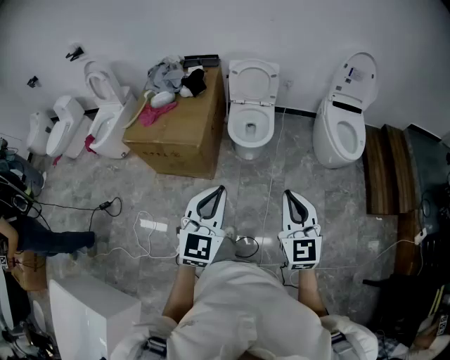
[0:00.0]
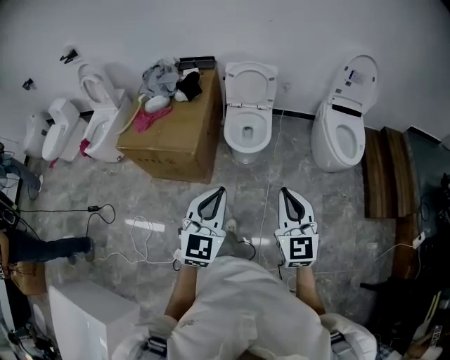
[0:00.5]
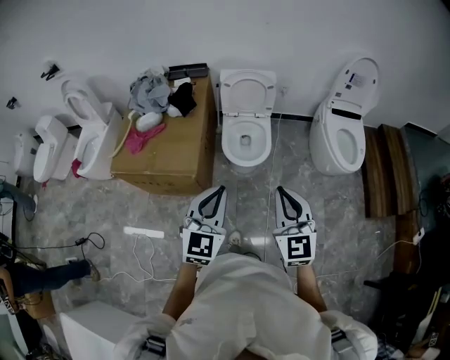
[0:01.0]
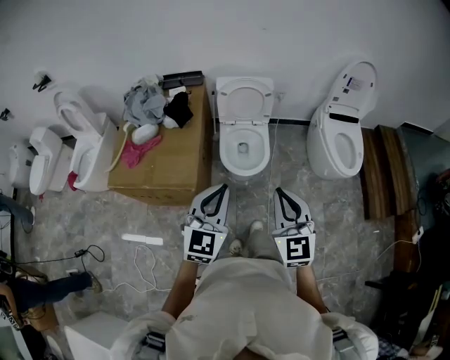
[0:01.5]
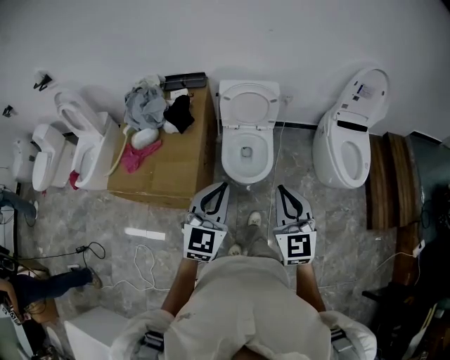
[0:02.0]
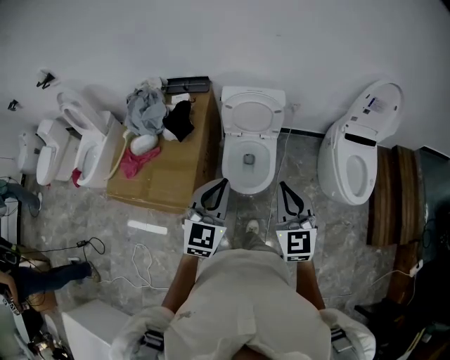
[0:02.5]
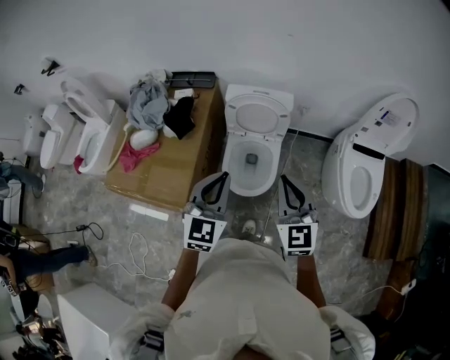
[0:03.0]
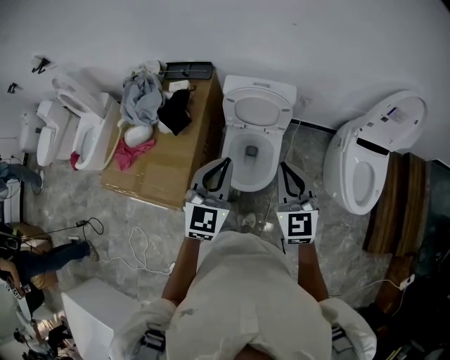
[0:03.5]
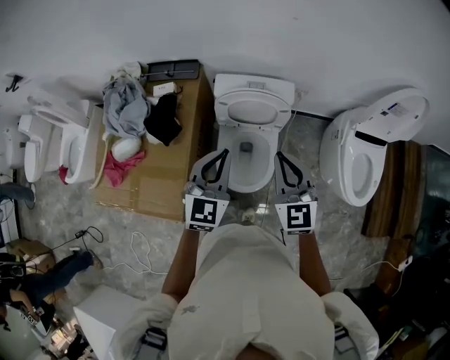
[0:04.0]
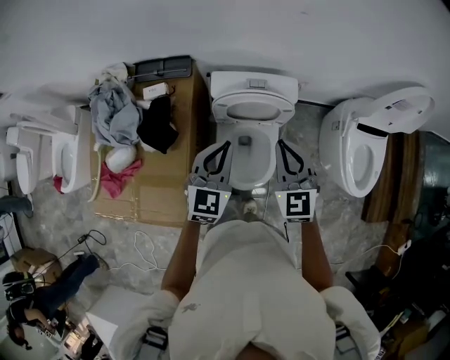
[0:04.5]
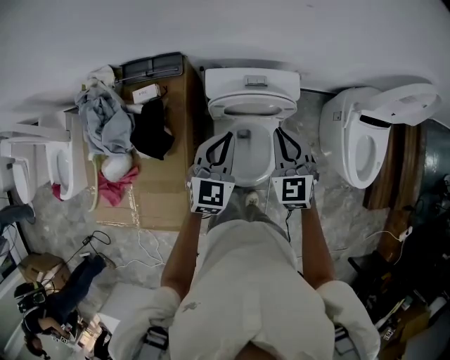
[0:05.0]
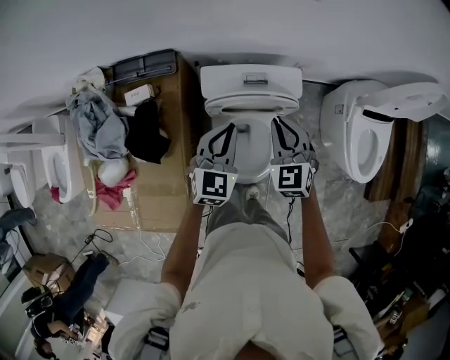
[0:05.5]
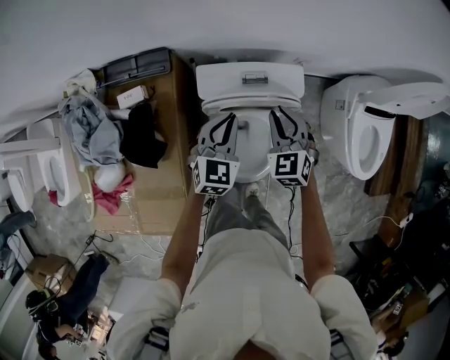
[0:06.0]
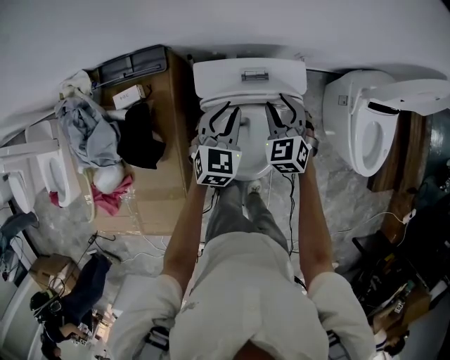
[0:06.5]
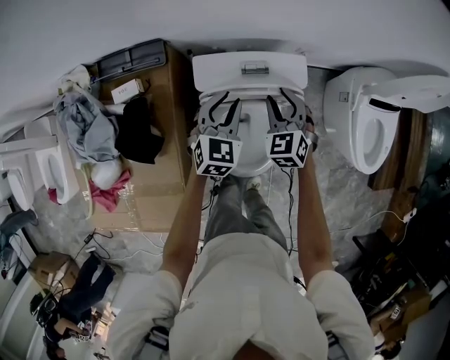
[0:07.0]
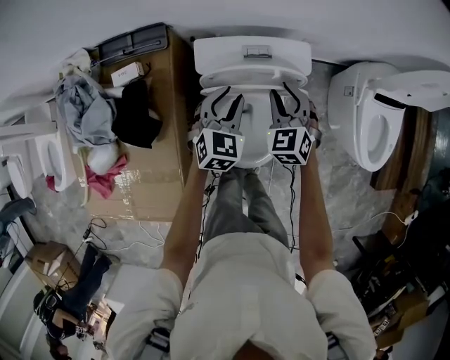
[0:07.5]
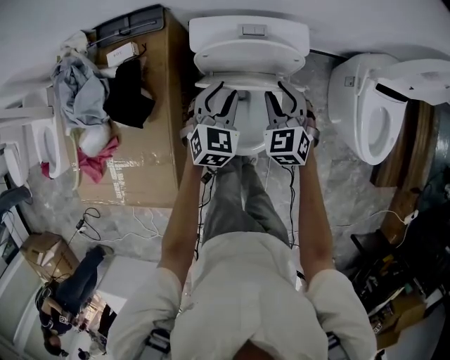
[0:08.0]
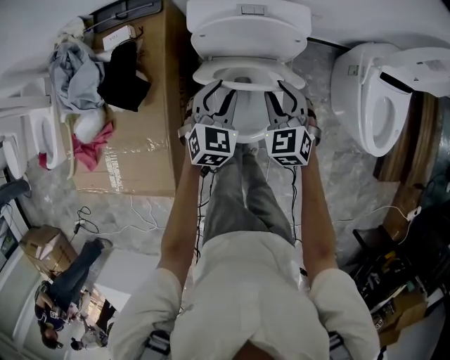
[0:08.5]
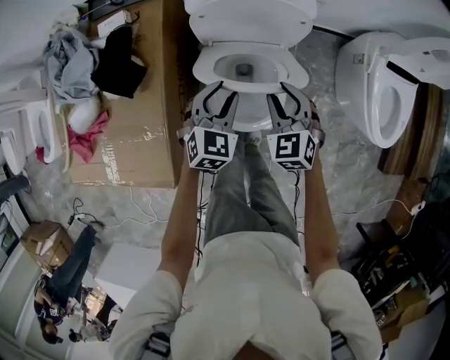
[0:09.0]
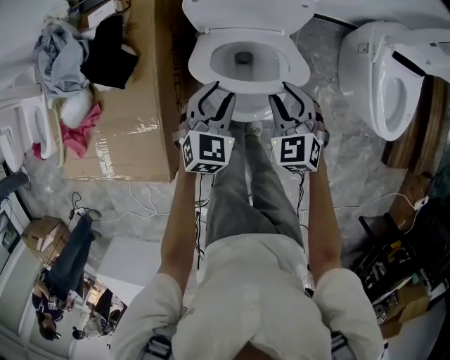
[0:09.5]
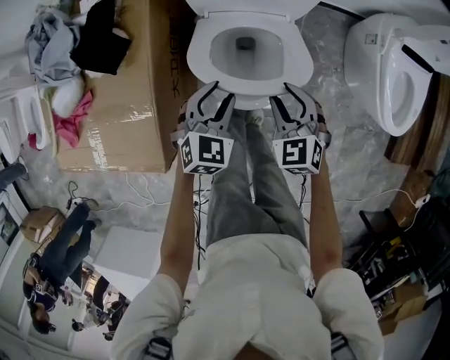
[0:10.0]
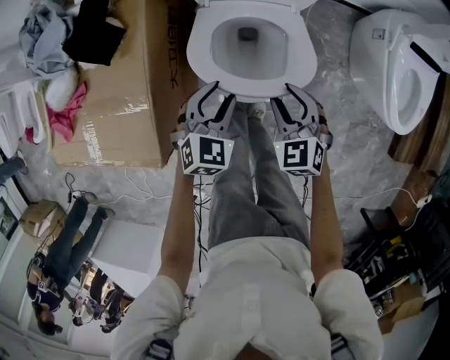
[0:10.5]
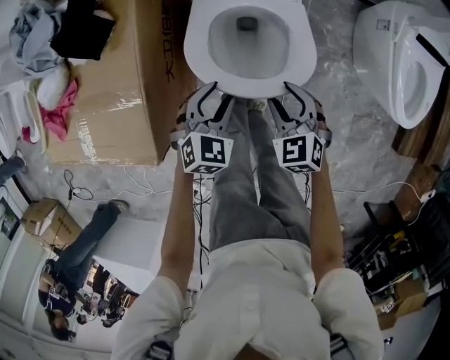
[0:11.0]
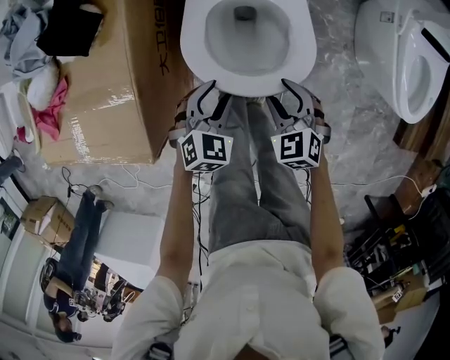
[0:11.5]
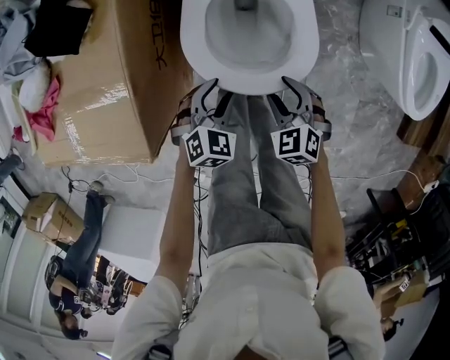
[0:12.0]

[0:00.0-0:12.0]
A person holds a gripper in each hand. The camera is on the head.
0:00.0 to 0:02.0: The grippers both shift forward by approximately 35 cm.
0:02.0 to 0:04.0: Both grippers move forward, roughly 35 cm.
0:04.0 to 0:06.0: The right gripper shifts some 30 cm downward and forward, and turns by about 30 degrees; the left gripper goes some 30 cm forward and downward.
0:06.0 to 0:08.0: The right gripper goes some 5 cm backward, while the left gripper shifts roughly 10 cm backward and downward, and opens.
0:08.0 to 0:10.0: The two grippers go approximately 20 cm backward and downward.
0:10.0 to 0:12.0: Both grippers travel together downward and backward, roughly 20 cm.

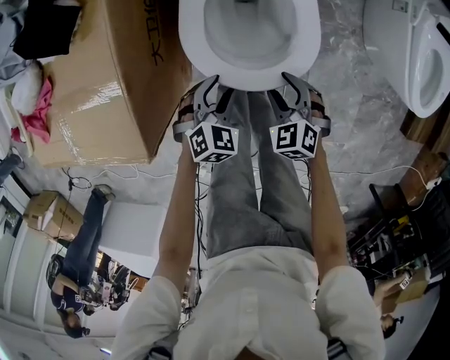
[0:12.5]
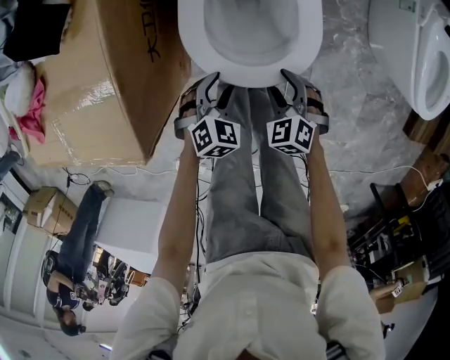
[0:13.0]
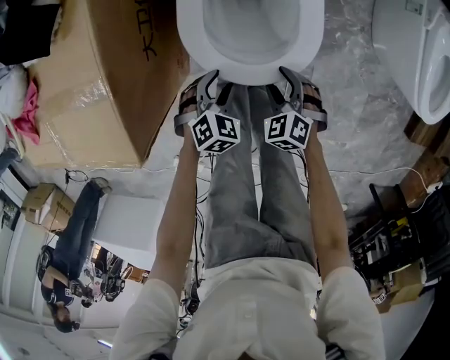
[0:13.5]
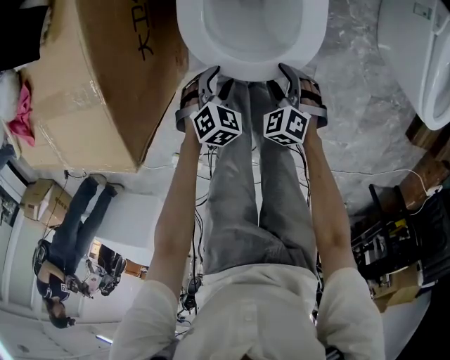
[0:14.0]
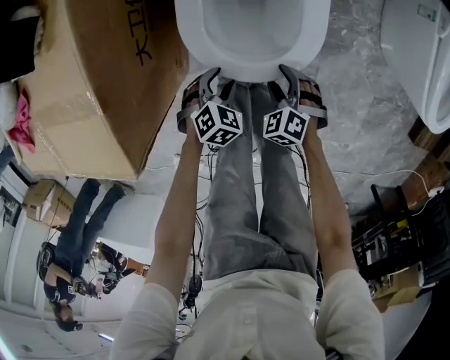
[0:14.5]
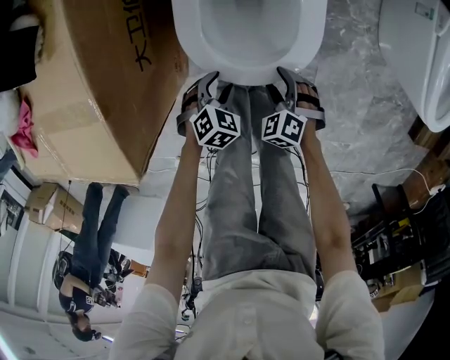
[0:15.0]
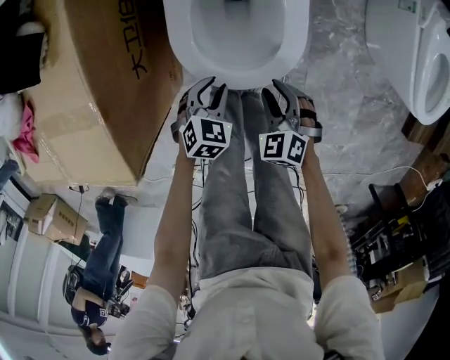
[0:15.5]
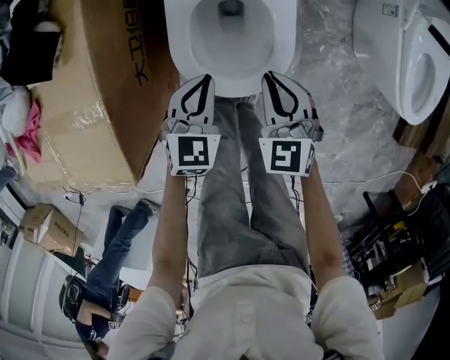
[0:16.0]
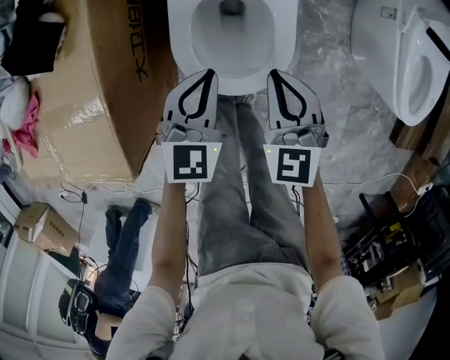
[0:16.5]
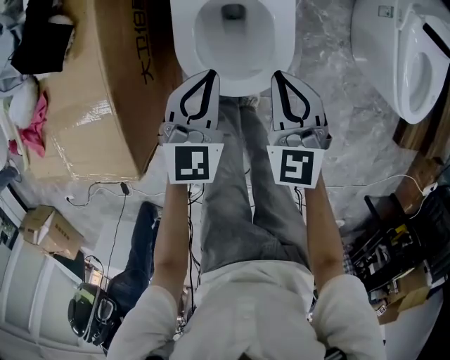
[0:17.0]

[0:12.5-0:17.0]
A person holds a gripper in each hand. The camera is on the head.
0:12.5 to 0:14.5: The left gripper goes roughly 10 cm downward, while the right gripper is displaced downward and to the right by approximately 10 cm.
0:14.5 to 0:17.0: The left gripper shifts some 30 cm upward and forward, tilts its fingers some 40 degrees upward, and closes its fingers. The right gripper heads upward, covering approximately 30 cm, angles its fingers upward, by approximately 30 degrees, and closes up.

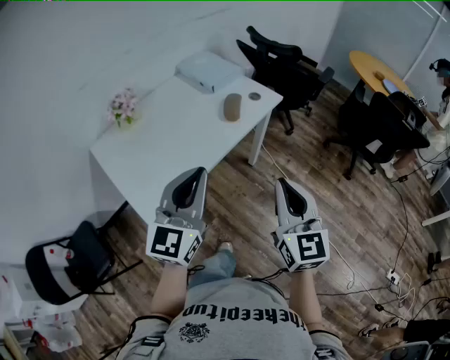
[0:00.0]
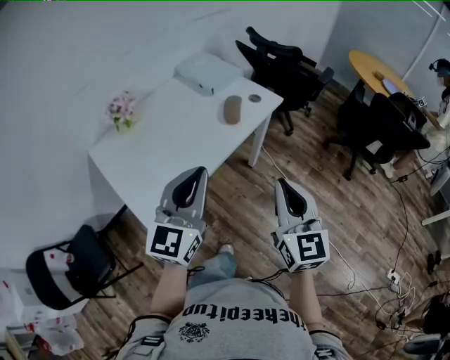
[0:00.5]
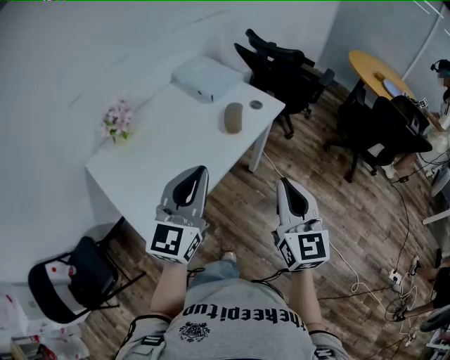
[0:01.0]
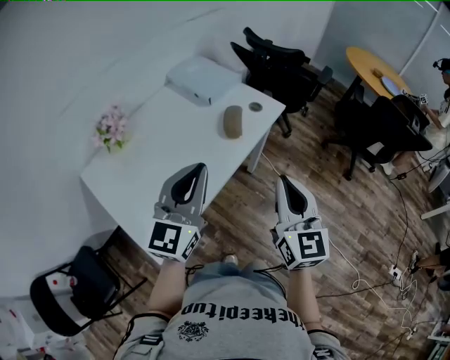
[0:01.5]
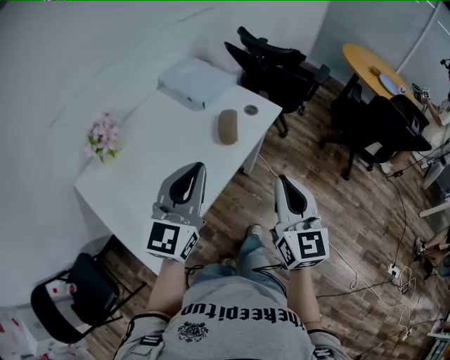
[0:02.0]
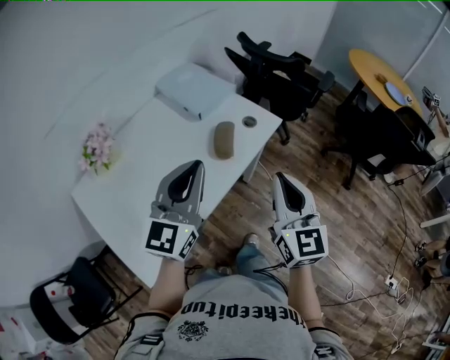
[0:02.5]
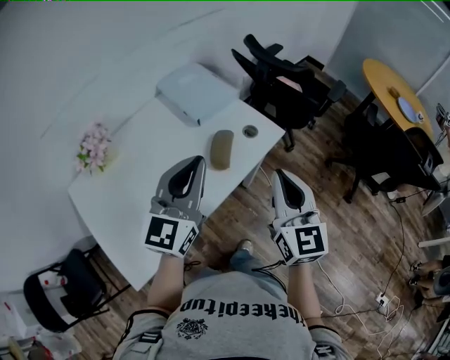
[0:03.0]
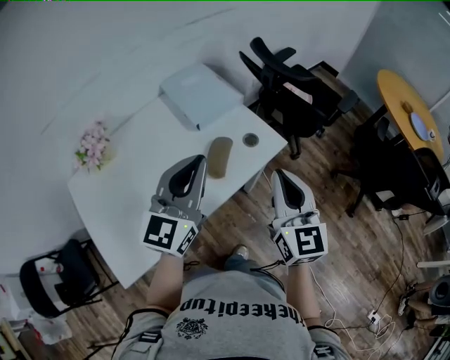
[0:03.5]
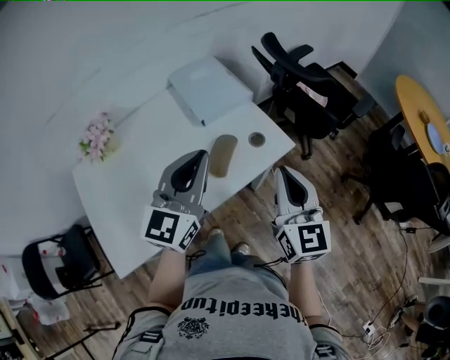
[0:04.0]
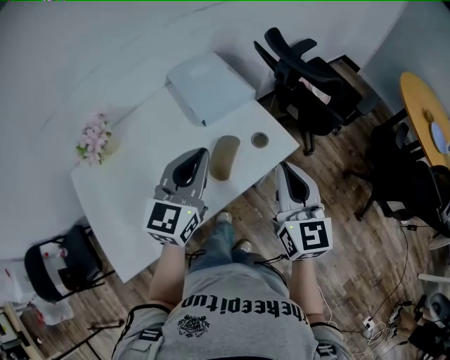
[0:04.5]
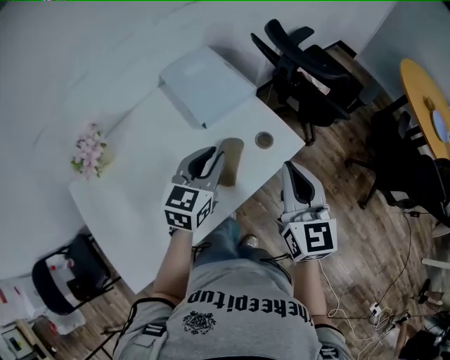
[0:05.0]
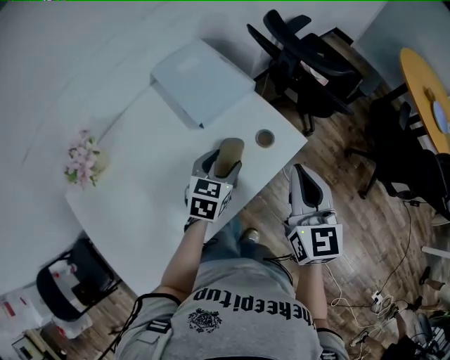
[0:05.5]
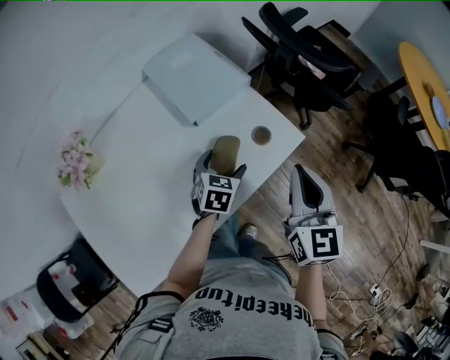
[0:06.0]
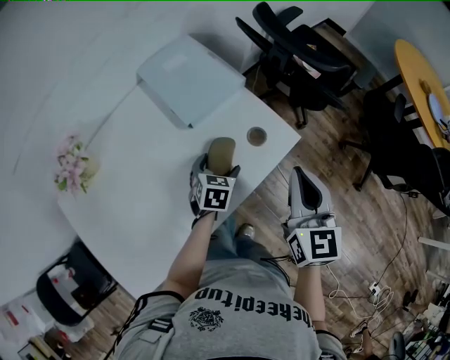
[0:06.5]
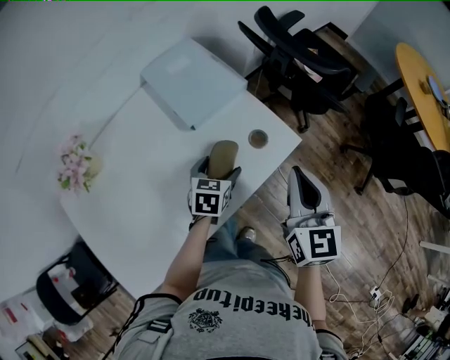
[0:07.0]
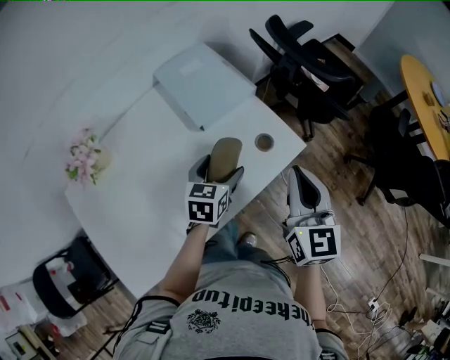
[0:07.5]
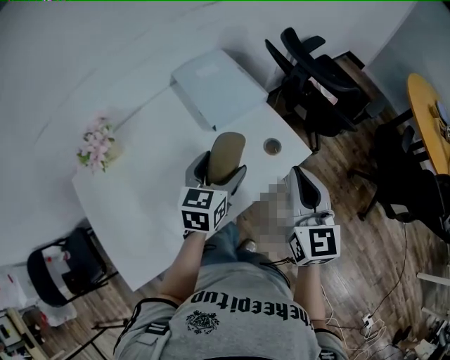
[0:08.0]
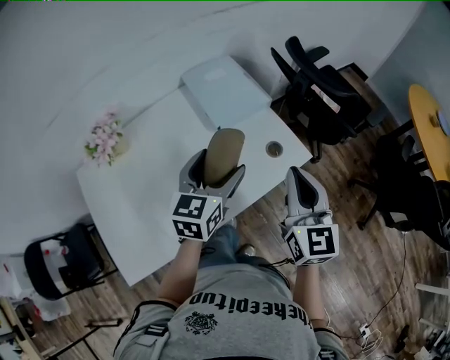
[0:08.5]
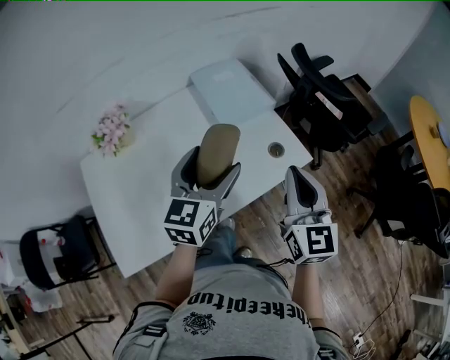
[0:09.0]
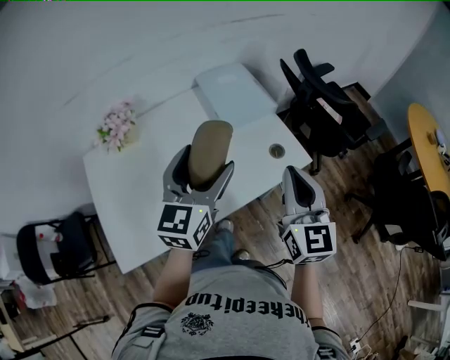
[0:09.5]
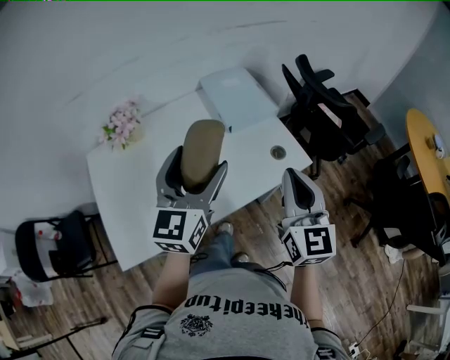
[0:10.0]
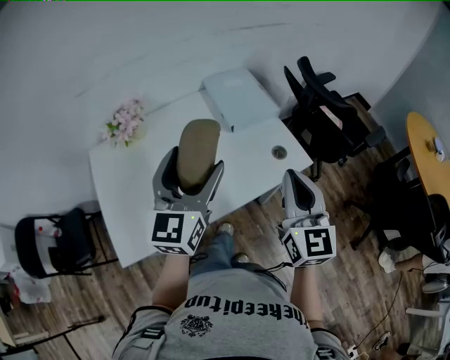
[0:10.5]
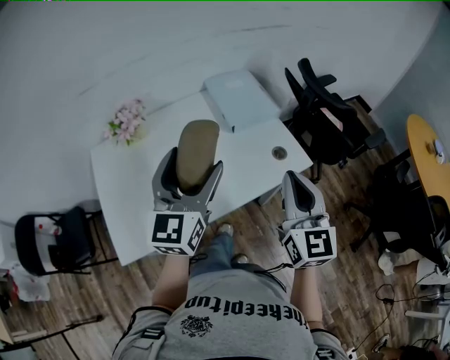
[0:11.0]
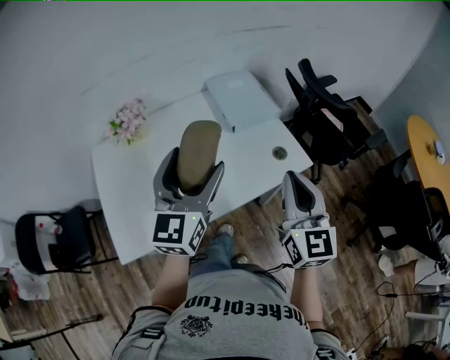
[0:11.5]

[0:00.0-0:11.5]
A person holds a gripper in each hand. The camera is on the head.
0:00.0 to 0:02.0: The grippers both shift forward by roughly 15 cm.
0:02.0 to 0:04.0: The right gripper moves forward, some 20 cm, while the left gripper goes approximately 20 cm forward and to the right.
0:04.0 to 0:06.0: The left gripper travels downward and forward by roughly 30 cm, angles its fingers downward, by roughly 50 degrees, and opens up. Meanwhile the right gripper travels forward by roughly 10 cm.
0:06.0 to 0:07.5: The left gripper goes roughly 5 cm upward.
0:07.5 to 0:09.5: The right gripper goes approximately 10 cm backward and upward. Meanwhile the left gripper moves upward and backward, about 25 cm, and tips its fingers upward by about 30 degrees.
0:09.5 to 0:11.5: The left gripper goes approximately 5 cm backward.
